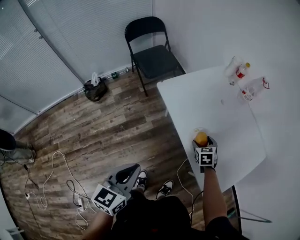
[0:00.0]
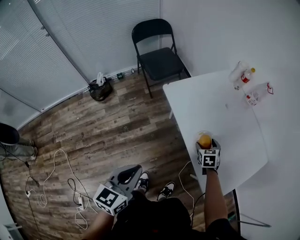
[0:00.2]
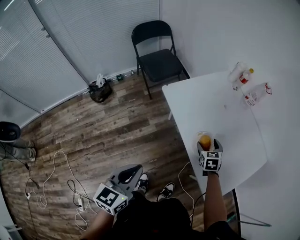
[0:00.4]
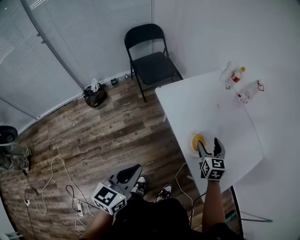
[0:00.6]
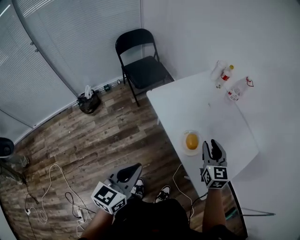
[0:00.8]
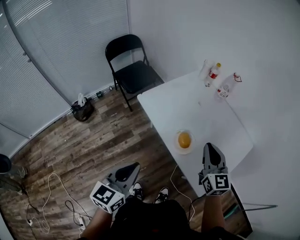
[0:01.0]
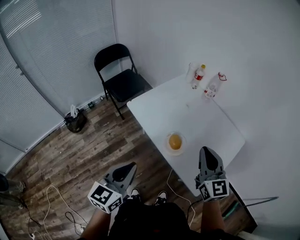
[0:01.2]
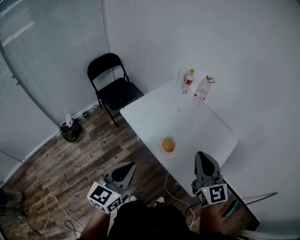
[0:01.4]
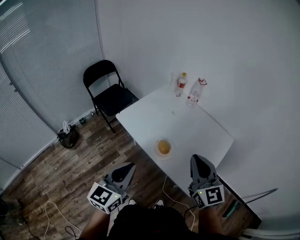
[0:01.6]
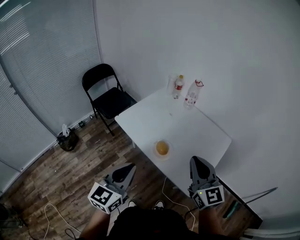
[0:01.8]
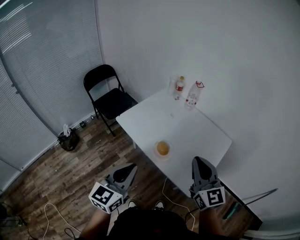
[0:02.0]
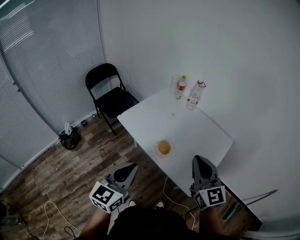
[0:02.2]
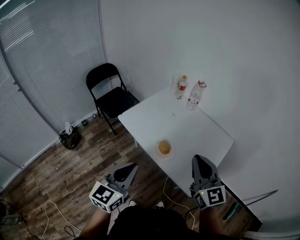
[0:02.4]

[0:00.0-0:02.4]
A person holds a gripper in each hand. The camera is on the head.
0:00.0 to 0:01.2: The left gripper goes approximately 10 cm upward and to the right, while the right gripper goes some 35 cm upward, tilts its fingers some 50 degrees upward, and closes its fingers.
0:01.2 to 0:02.4: The left gripper travels to the right and upward by roughly 5 cm. The right gripper travels backward and upward by roughly 10 cm.

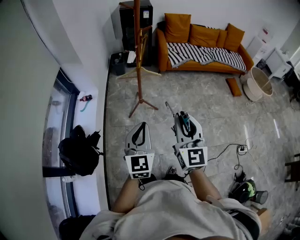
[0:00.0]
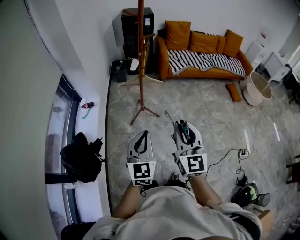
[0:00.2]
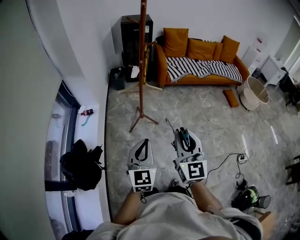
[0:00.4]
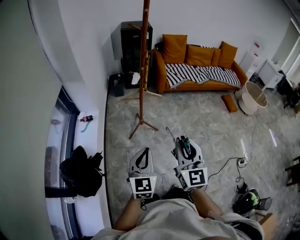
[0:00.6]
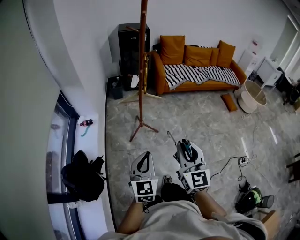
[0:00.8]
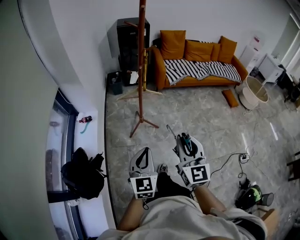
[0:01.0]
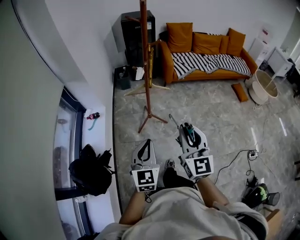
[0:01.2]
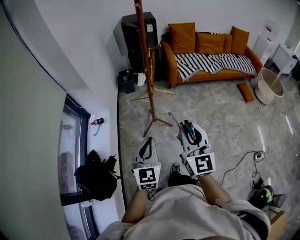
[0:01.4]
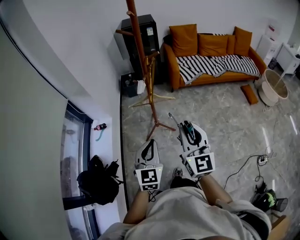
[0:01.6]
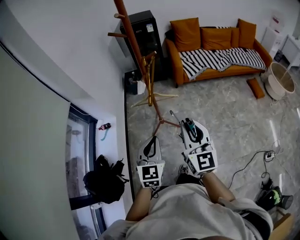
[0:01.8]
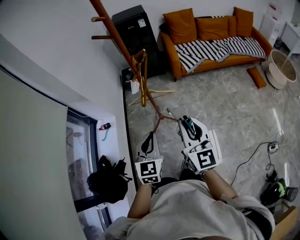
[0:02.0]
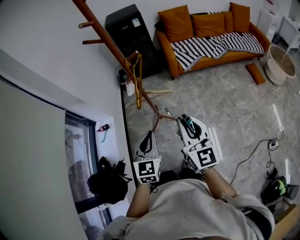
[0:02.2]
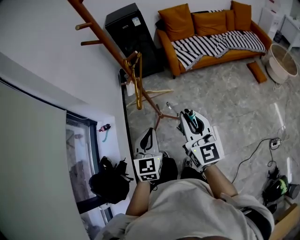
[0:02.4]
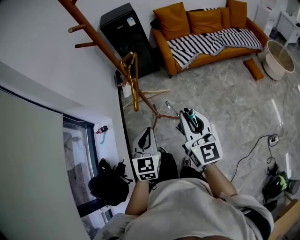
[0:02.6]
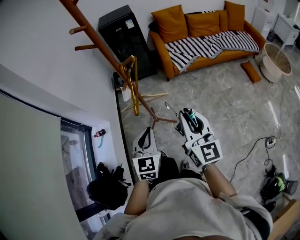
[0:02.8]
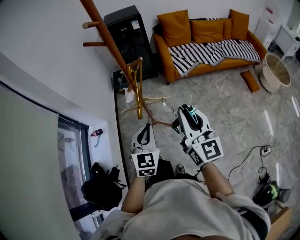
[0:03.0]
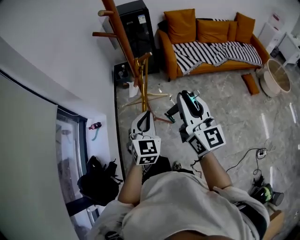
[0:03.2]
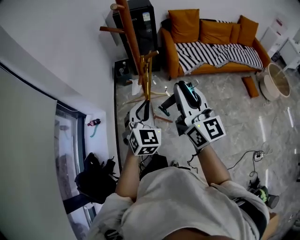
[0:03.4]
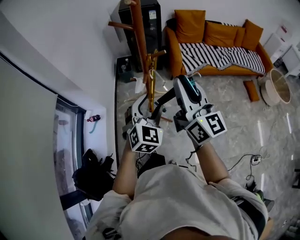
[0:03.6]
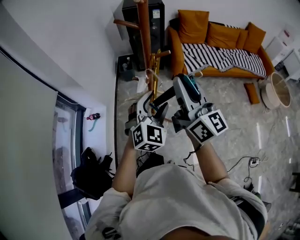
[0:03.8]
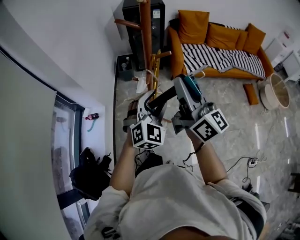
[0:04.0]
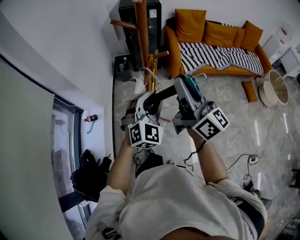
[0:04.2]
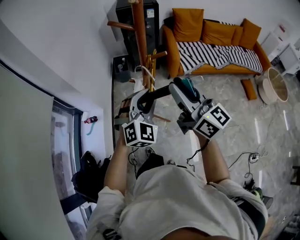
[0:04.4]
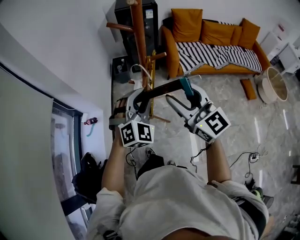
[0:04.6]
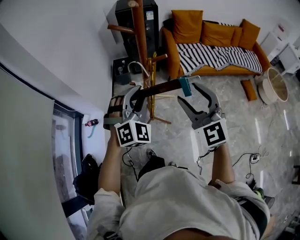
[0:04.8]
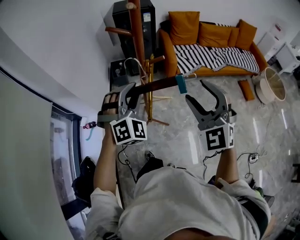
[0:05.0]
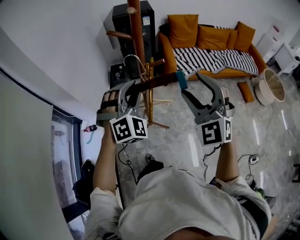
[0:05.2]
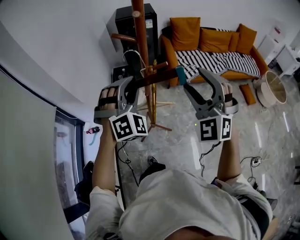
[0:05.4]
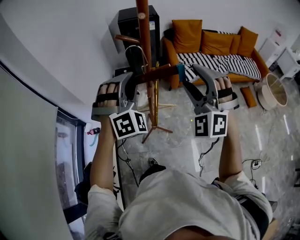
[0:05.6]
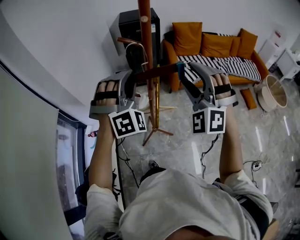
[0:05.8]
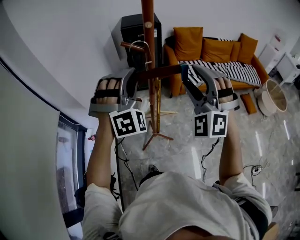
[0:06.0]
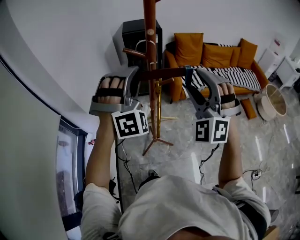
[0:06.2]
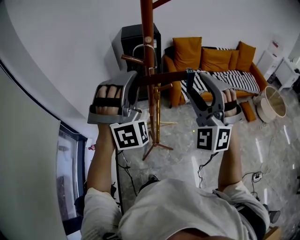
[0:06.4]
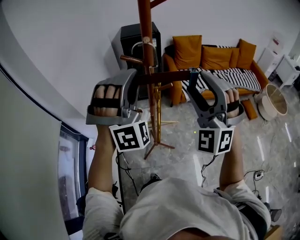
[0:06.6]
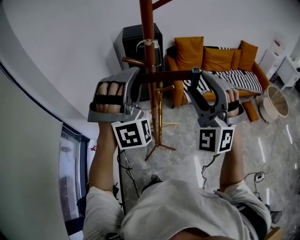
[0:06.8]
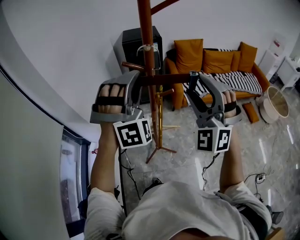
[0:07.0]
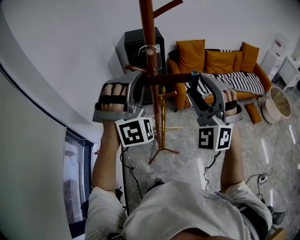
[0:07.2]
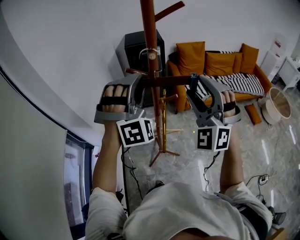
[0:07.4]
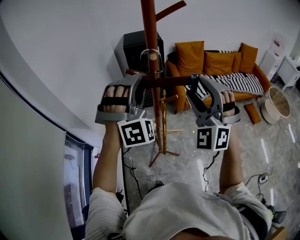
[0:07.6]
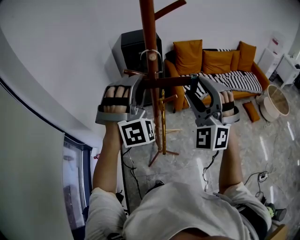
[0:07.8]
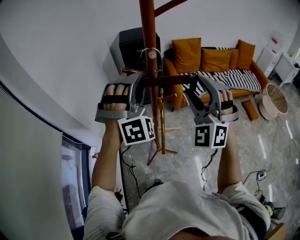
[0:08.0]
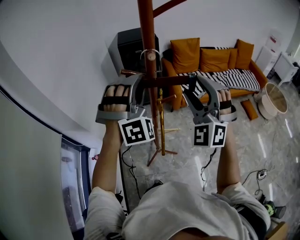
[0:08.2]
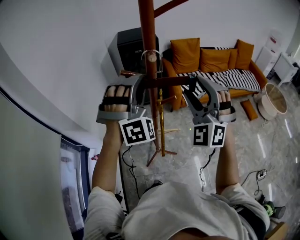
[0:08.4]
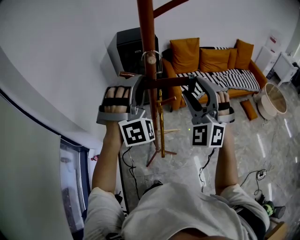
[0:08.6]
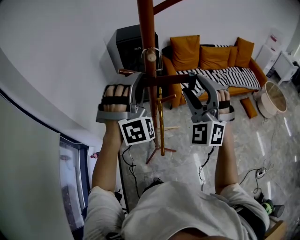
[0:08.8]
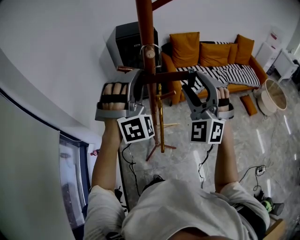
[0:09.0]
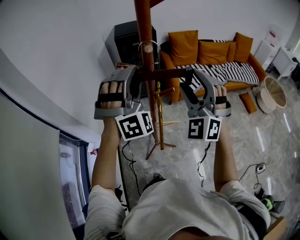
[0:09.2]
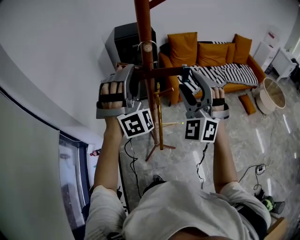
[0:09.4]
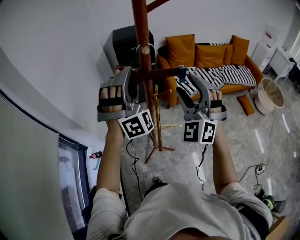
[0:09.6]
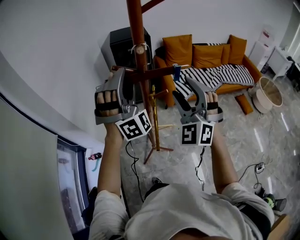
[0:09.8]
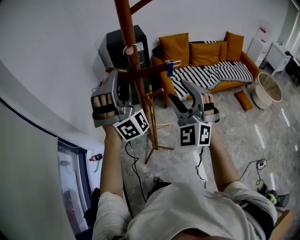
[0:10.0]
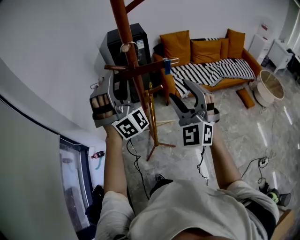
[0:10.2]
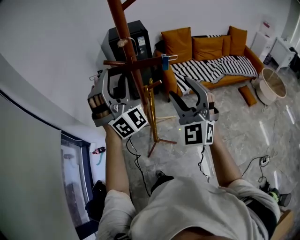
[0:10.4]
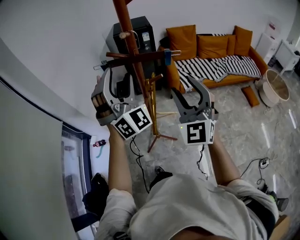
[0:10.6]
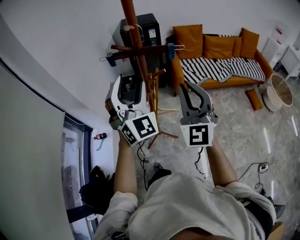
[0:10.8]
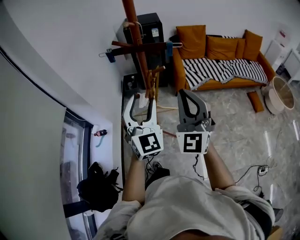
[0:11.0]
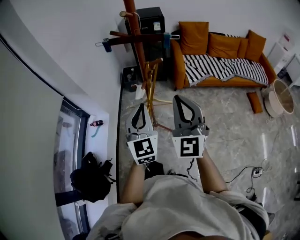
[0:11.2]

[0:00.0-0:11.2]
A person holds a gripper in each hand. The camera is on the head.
0:00.0 to 0:01.6: Both grippers travel together forward, roughly 15 cm.
0:01.6 to 0:03.2: The grippers both shift forward by approximately 20 cm.
0:03.2 to 0:04.8: The right gripper shifts about 10 cm to the left and forward, rotates around the line of its fingers by approximately 40 degrees, counterclockwise from behind, and opens up; the left gripper is displaced forward, upward and to the left by about 10 cm, turns by approximately 40 degrees, and opens up.
0:04.8 to 0:06.4: The two grippers go some 15 cm upward. The left gripper swivels roughly 40 degrees. The right gripper twists approximately 40 degrees counterclockwise, seen from behind.
0:06.4 to 0:08.0: Both grippers move forward, about 5 cm.
0:08.0 to 0:09.6: There are only small adjustments of the grippers.
0:09.6 to 0:11.2: The right gripper travels backward by some 15 cm, turns by approximately 40 degrees, and closes up, while the left gripper goes some 25 cm backward and downward, rolls counterclockwise, seen from behind, by roughly 70 degrees, and closes.

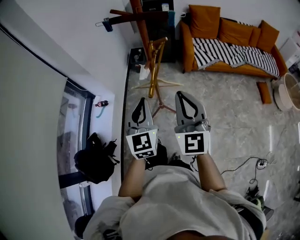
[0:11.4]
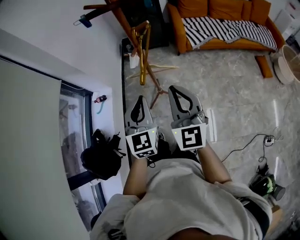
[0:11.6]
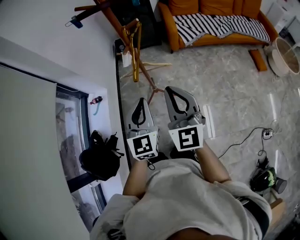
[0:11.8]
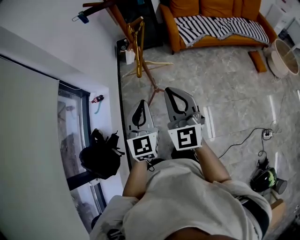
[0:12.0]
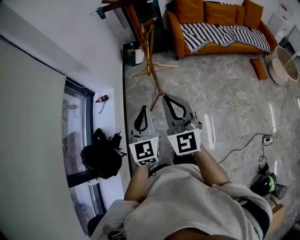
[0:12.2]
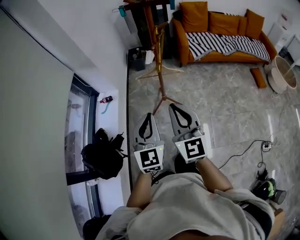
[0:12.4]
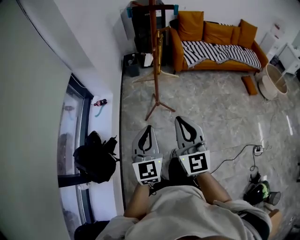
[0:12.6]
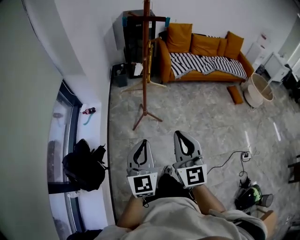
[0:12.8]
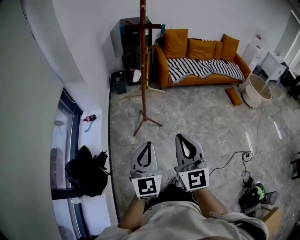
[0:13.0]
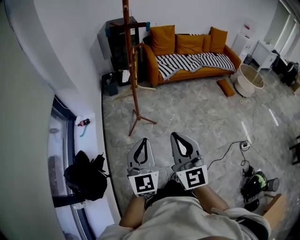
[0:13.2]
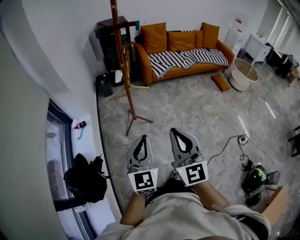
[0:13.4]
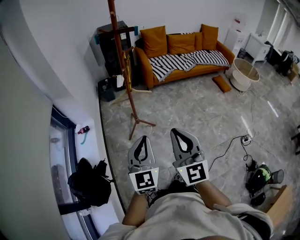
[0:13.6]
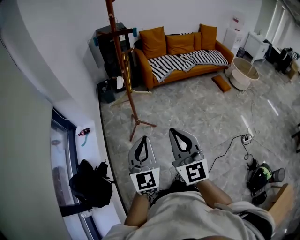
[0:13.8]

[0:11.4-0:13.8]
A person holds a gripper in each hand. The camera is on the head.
0:11.4 to 0:12.6: The right gripper goes roughly 30 cm backward and to the left, while the left gripper heads backward, covering approximately 25 cm.
0:12.6 to 0:13.8: The left gripper moves to the right and upward, roughly 10 cm; the right gripper moves backward, some 10 cm.

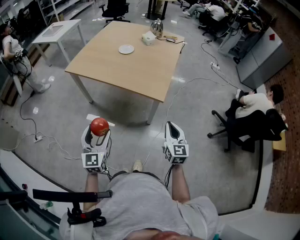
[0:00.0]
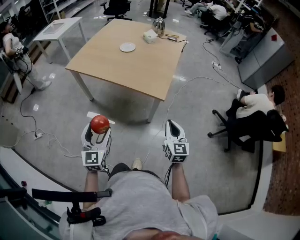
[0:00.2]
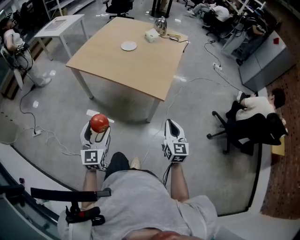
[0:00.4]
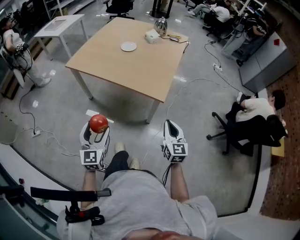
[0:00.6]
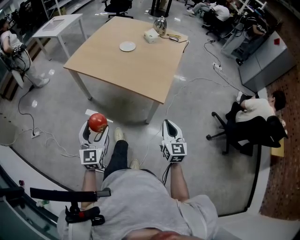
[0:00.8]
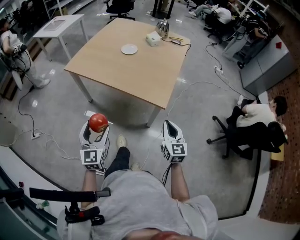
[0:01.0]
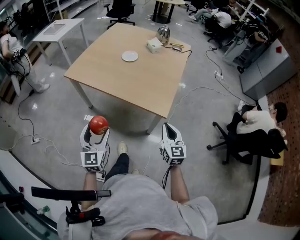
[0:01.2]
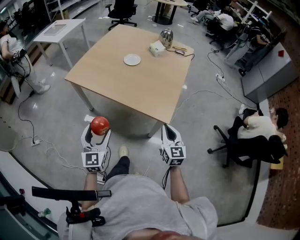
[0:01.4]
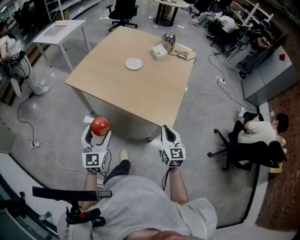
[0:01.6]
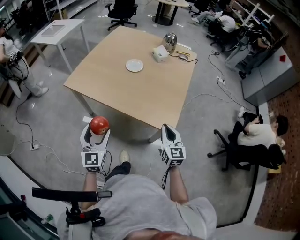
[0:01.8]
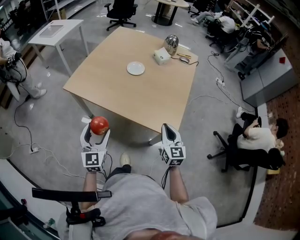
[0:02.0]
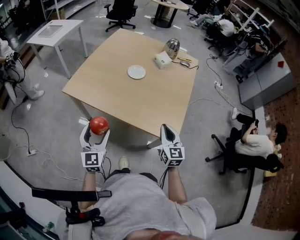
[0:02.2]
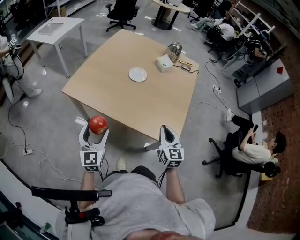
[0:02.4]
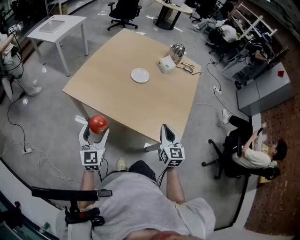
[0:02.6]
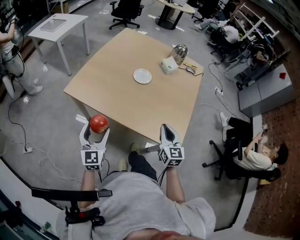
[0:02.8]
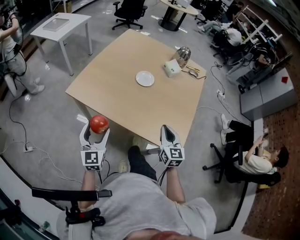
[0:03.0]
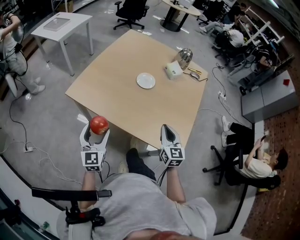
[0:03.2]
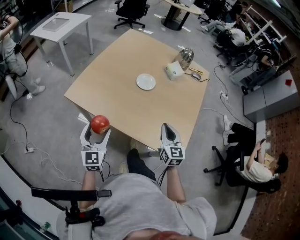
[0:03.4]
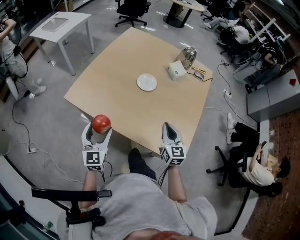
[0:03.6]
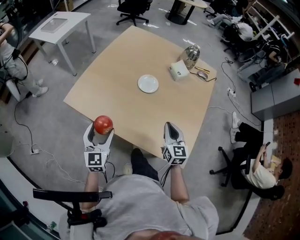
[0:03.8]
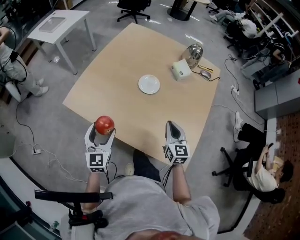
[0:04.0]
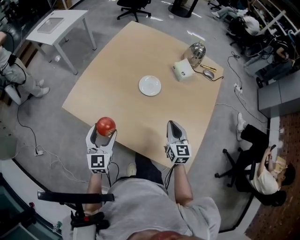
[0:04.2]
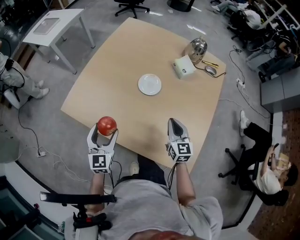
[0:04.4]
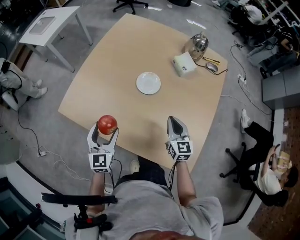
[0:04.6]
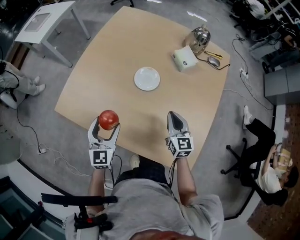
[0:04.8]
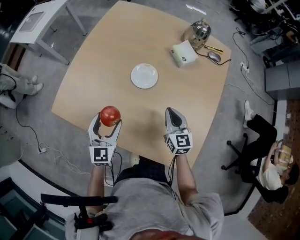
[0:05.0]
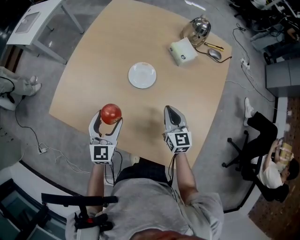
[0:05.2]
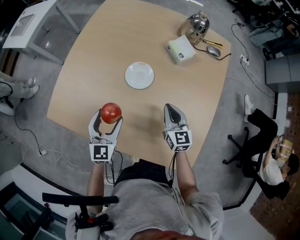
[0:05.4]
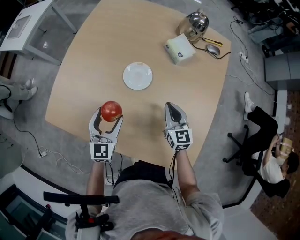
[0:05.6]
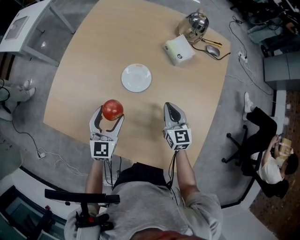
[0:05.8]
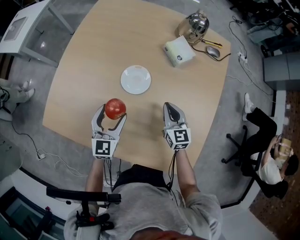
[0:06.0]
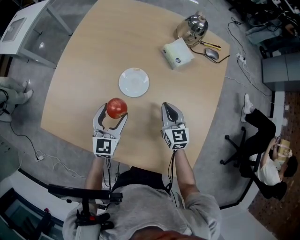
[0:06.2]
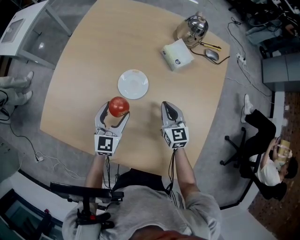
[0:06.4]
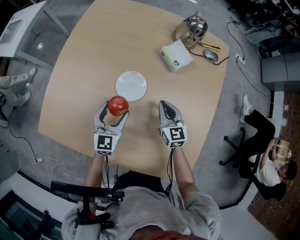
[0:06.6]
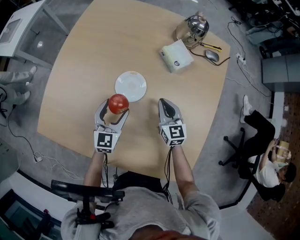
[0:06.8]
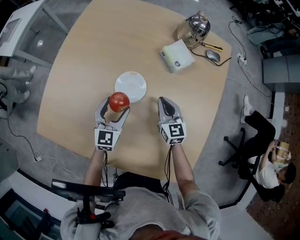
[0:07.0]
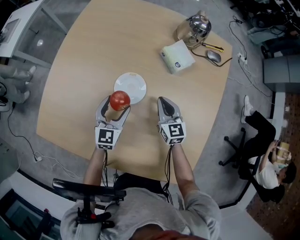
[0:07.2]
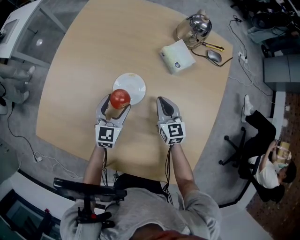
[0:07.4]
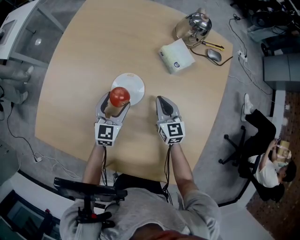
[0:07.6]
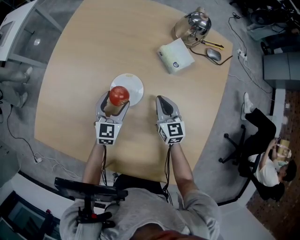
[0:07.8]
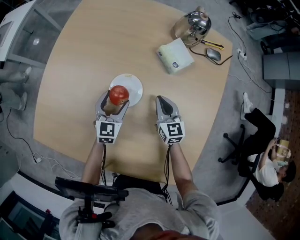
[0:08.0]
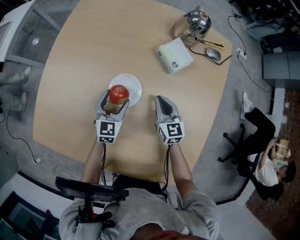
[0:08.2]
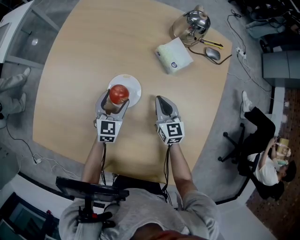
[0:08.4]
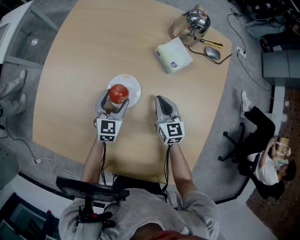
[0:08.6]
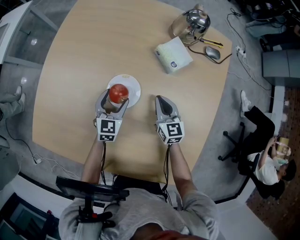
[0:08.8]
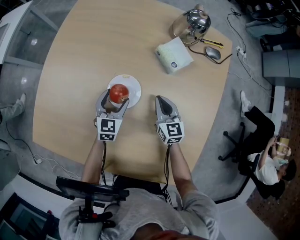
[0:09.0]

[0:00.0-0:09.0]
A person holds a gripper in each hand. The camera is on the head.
0:00.0 to 0:01.6: Both grippers travel together forward, some 20 cm.
0:01.6 to 0:03.0: The grippers both shift forward and to the left by approximately 20 cm.
0:03.0 to 0:04.4: Both grippers move forward, some 20 cm.
0:04.4 to 0:06.0: The left gripper is displaced forward, to the right and downward by roughly 20 cm; the right gripper shifts some 15 cm forward and downward.
0:06.0 to 0:07.6: The right gripper travels forward by about 10 cm. Meanwhile the left gripper is displaced forward and downward by some 15 cm.
0:07.6 to 0:09.0: The left gripper moves roughly 5 cm.
